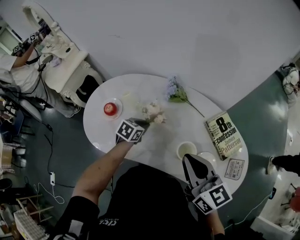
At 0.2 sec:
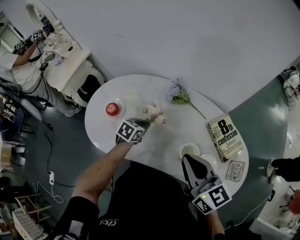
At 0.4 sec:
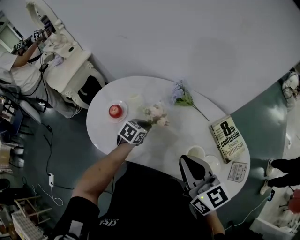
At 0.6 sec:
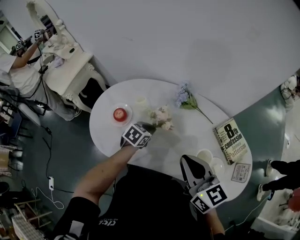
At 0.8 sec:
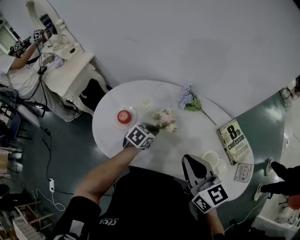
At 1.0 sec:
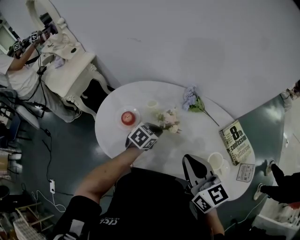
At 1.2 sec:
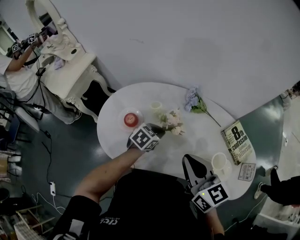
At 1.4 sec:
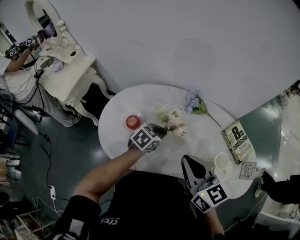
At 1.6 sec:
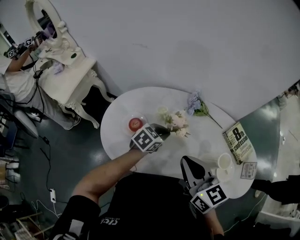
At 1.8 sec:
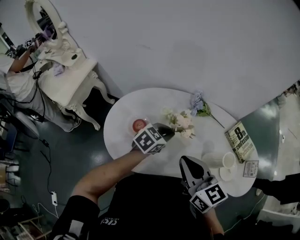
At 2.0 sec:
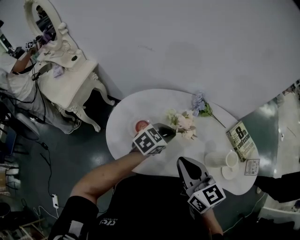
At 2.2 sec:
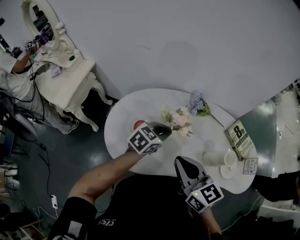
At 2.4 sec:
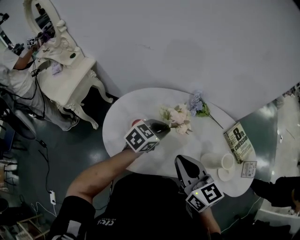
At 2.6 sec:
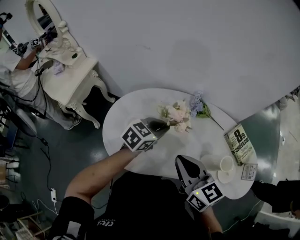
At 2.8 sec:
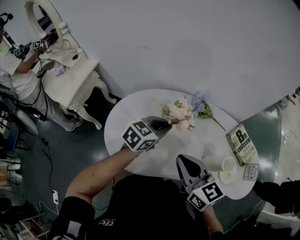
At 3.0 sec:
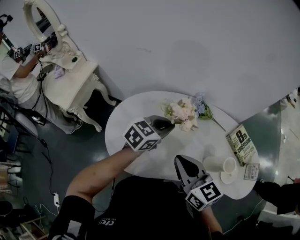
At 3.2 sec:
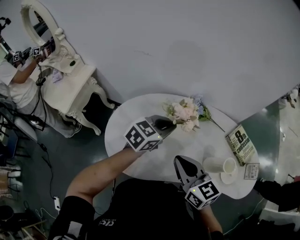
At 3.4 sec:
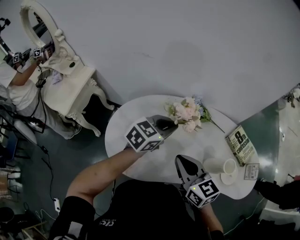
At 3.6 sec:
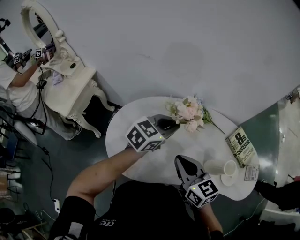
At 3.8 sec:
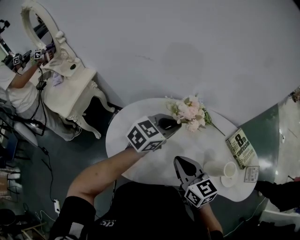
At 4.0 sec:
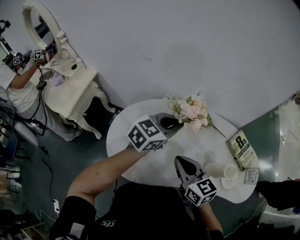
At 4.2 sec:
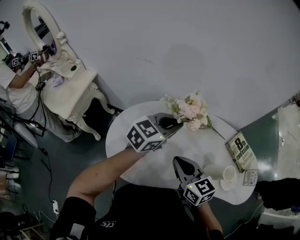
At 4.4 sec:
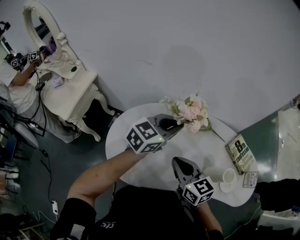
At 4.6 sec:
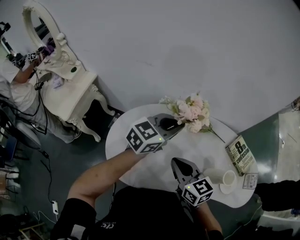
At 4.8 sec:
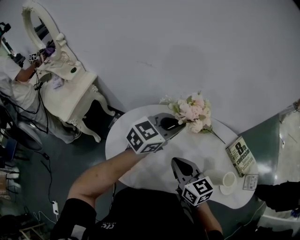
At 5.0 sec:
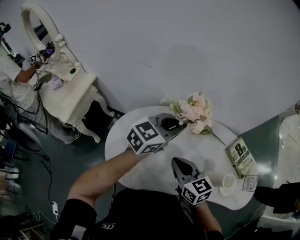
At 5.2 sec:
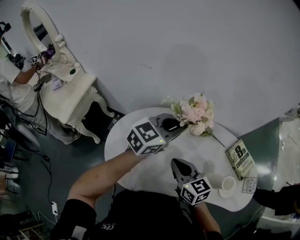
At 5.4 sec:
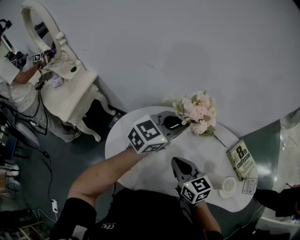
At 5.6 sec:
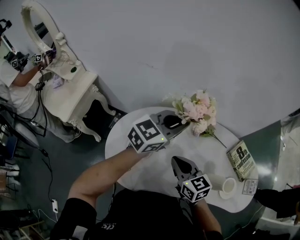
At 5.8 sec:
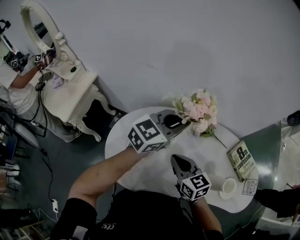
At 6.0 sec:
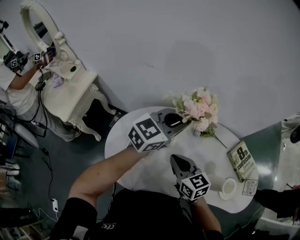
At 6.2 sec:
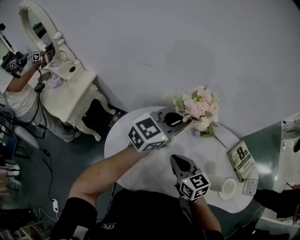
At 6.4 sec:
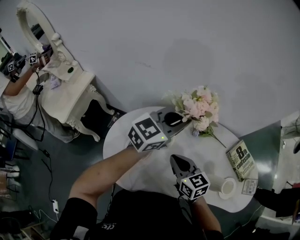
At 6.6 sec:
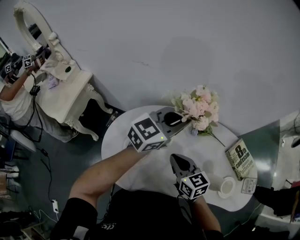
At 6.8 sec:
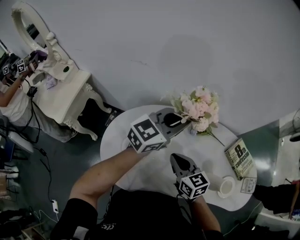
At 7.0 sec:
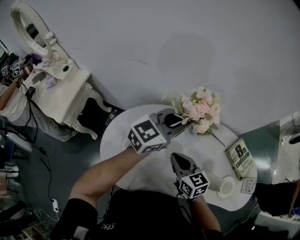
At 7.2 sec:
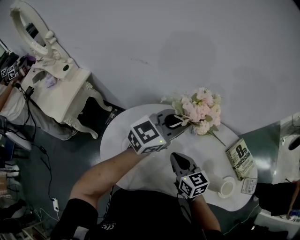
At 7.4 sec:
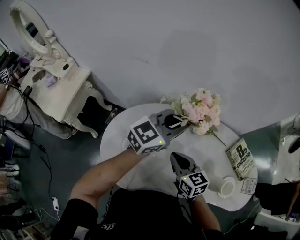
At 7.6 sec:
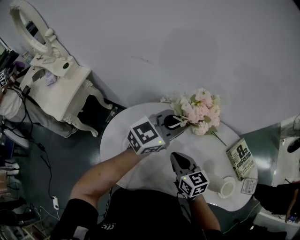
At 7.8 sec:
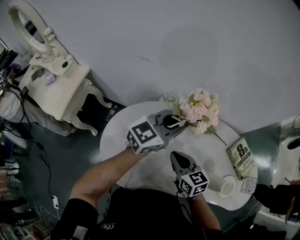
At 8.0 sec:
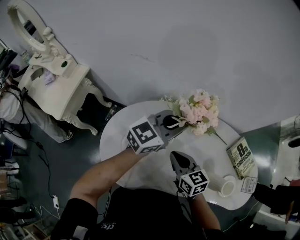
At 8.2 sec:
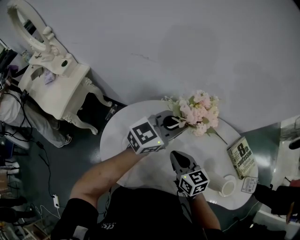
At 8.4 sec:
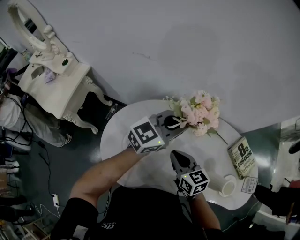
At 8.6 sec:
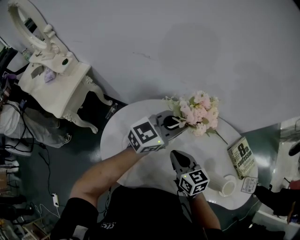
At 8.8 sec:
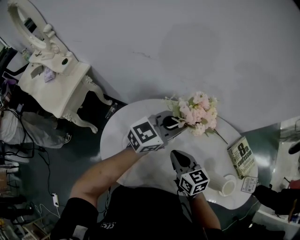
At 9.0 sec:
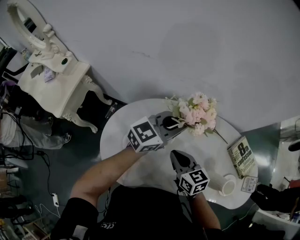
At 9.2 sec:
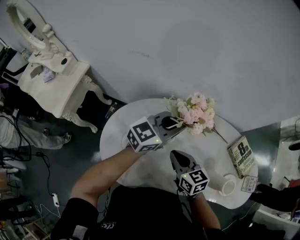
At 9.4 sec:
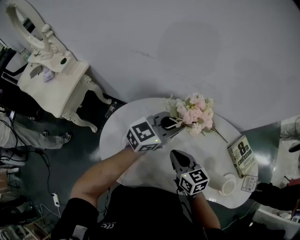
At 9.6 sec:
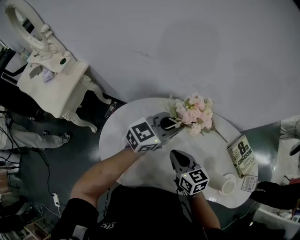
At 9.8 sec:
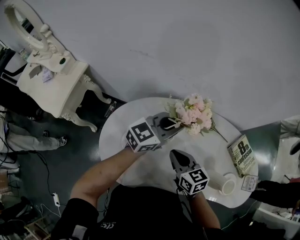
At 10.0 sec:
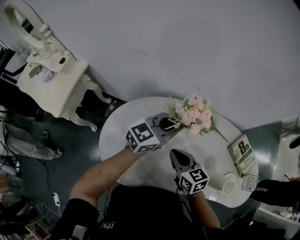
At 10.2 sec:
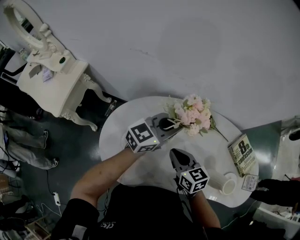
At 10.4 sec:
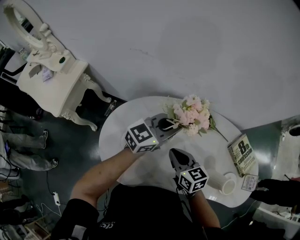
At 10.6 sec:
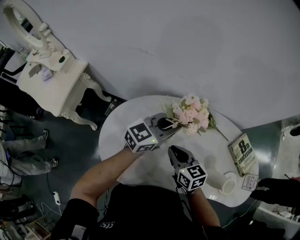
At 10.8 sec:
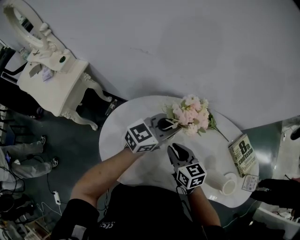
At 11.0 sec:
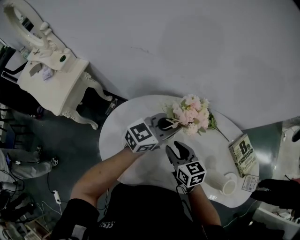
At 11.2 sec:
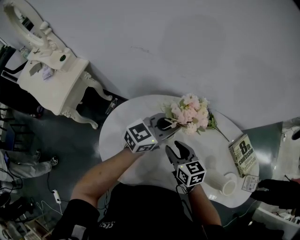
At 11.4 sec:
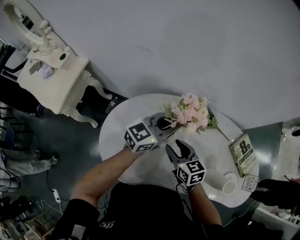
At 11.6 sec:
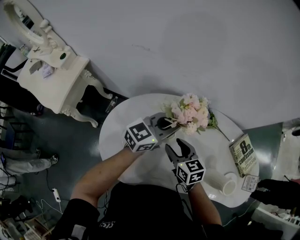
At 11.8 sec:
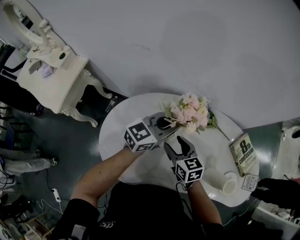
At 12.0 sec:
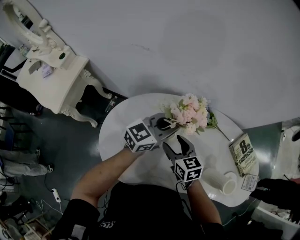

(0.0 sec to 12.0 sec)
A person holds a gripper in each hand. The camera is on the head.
0.0 sec - 1.6 sec: The left gripper travels to the left and upward by roughly 10 cm, and rotates some 20 degrees. The right gripper is displaced to the left by roughly 20 cm.
1.6 sec - 3.0 sec: The right gripper moves to the left, about 5 cm. The left gripper shifts roughly 10 cm upward.
3.0 sec - 4.4 sec: The right gripper goes about 5 cm forward. The left gripper shifts about 10 cm upward and forward.
4.4 sec - 6.0 sec: The left gripper shifts approximately 5 cm forward. Meanwhile the right gripper travels forward and downward by roughly 10 cm.
6.0 sec - 9.0 sec: The grippers make only small movements.
9.0 sec - 10.4 sec: There are only small adjustments of the grippers.
10.4 sec - 12.0 sec: The right gripper opens up.

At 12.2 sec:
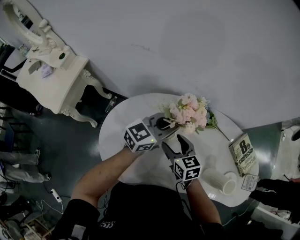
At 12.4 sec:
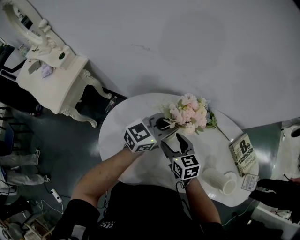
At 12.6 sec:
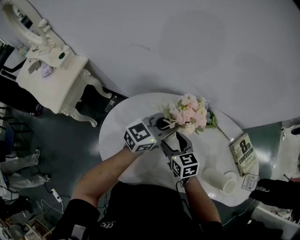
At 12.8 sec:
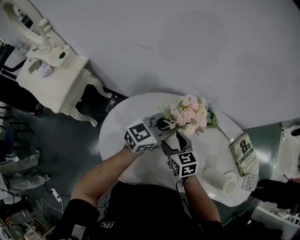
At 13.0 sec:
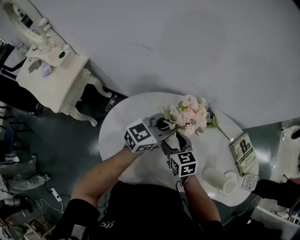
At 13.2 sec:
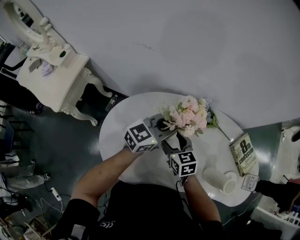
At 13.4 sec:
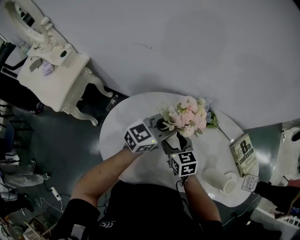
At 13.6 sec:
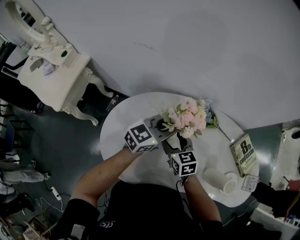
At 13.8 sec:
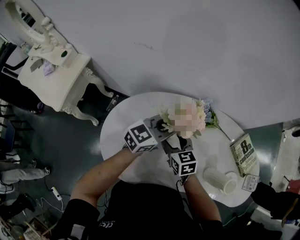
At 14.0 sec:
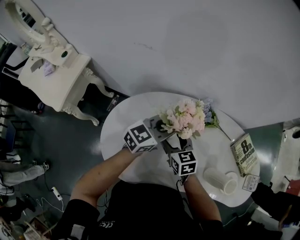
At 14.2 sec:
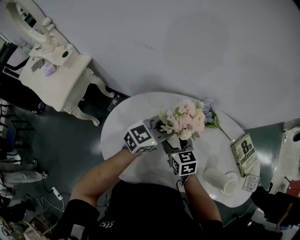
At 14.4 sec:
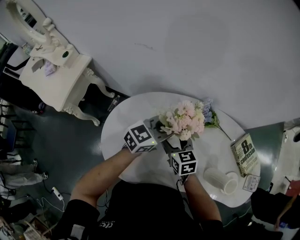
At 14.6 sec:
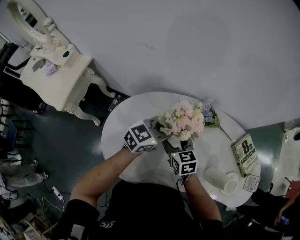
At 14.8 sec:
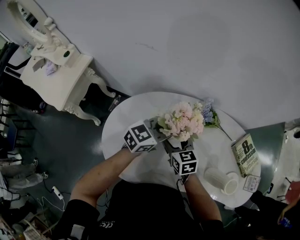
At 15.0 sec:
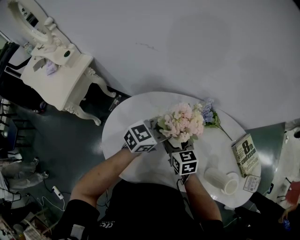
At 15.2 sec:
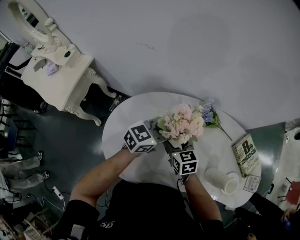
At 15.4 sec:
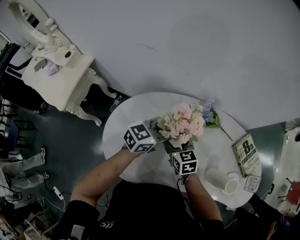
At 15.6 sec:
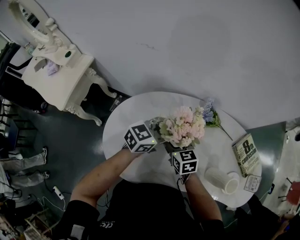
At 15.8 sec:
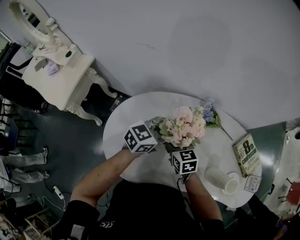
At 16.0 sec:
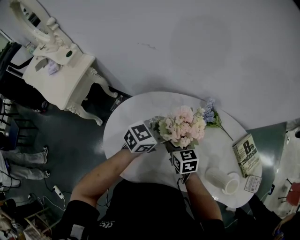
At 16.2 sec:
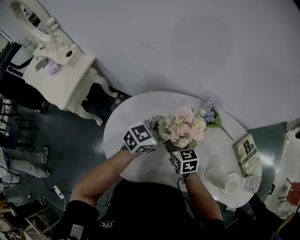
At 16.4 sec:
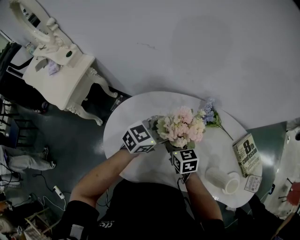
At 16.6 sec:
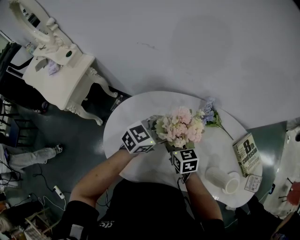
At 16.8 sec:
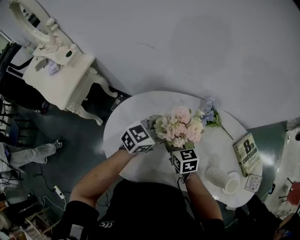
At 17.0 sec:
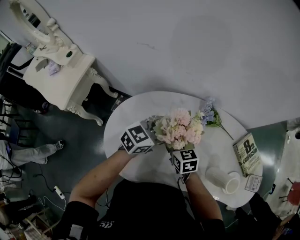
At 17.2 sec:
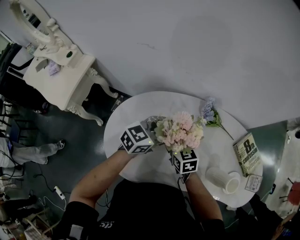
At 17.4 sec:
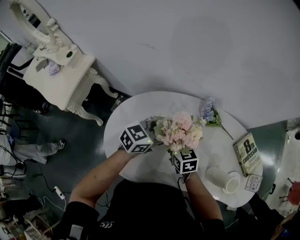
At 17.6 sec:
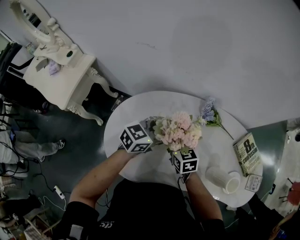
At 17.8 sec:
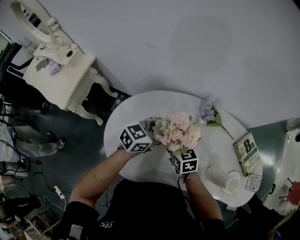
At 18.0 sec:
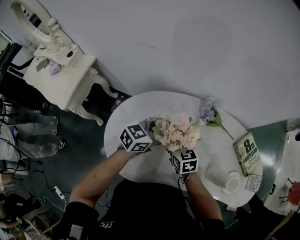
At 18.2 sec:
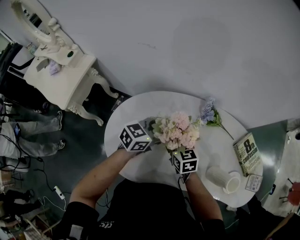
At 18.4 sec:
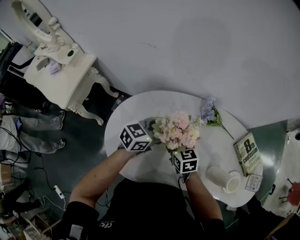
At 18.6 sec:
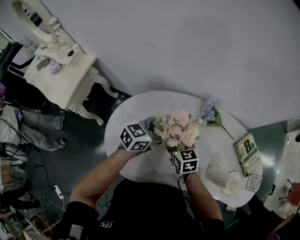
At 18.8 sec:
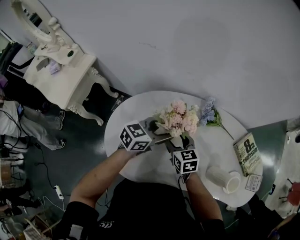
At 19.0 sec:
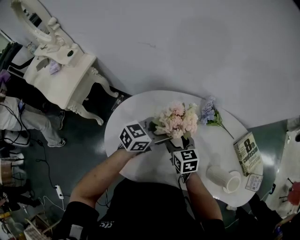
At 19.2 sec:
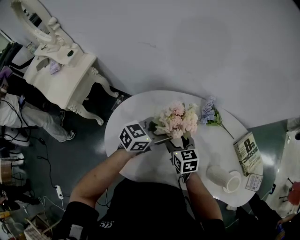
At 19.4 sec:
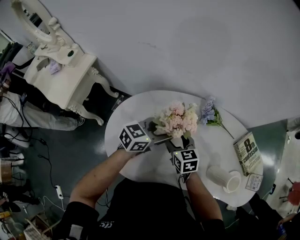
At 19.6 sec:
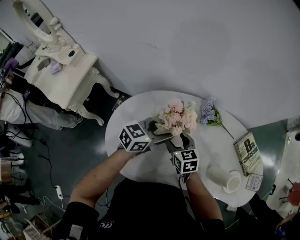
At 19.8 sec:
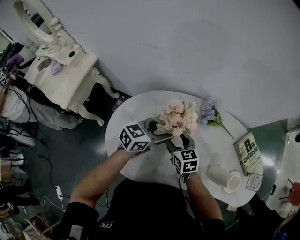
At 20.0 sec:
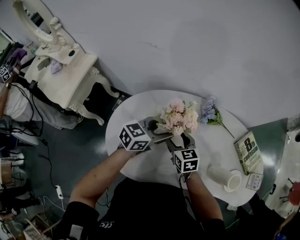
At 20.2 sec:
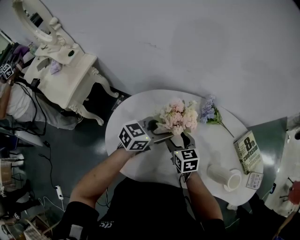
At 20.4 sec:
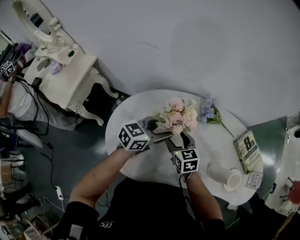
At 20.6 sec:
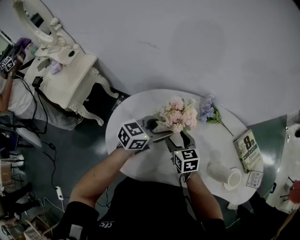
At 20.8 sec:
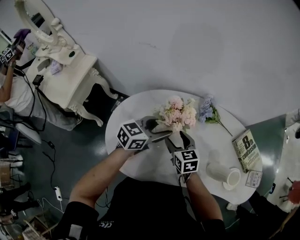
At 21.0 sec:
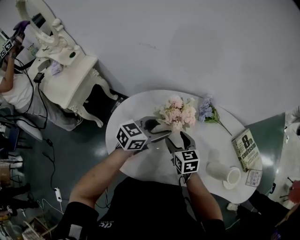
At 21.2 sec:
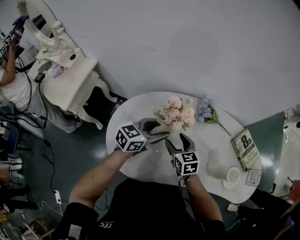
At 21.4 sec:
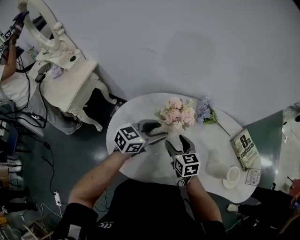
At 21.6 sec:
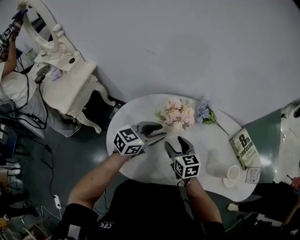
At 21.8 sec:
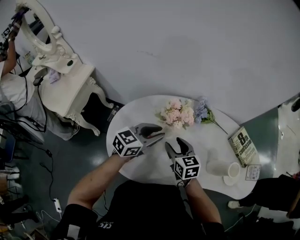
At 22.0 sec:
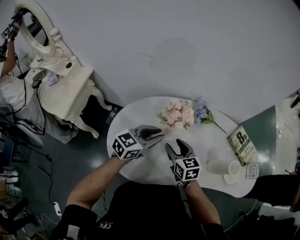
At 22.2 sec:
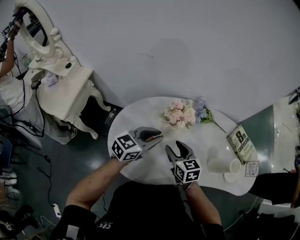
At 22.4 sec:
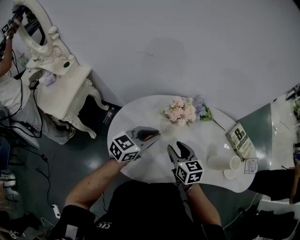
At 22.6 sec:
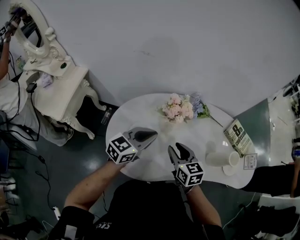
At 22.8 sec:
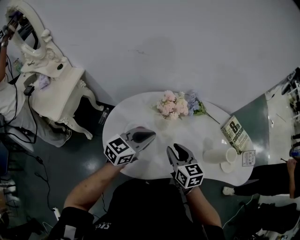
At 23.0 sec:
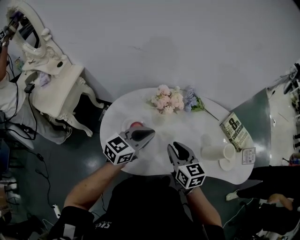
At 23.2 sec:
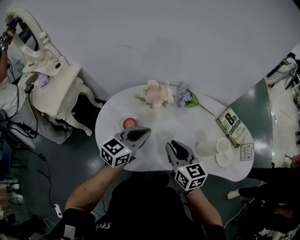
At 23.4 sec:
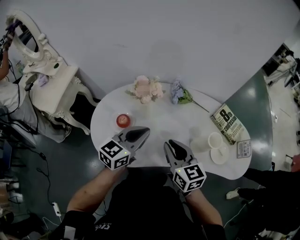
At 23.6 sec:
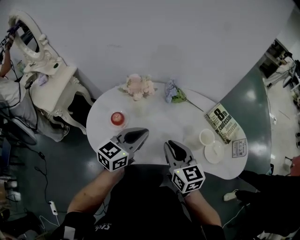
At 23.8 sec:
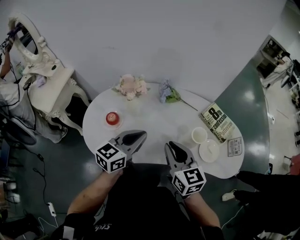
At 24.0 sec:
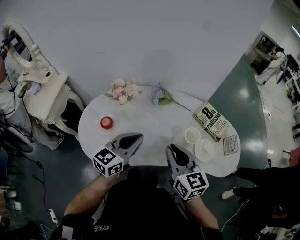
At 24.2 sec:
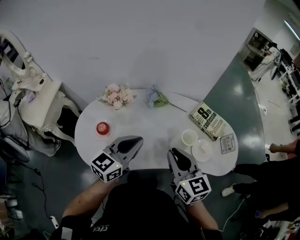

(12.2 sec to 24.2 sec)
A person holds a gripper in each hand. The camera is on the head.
12.2 sec - 15.2 sec: The grippers move only a little.
15.2 sec - 16.6 sec: The left gripper opens up.
16.6 sec - 18.2 sec: The grippers stay close to where they were, moving slightly.
18.2 sec - 19.8 sec: Both grippers stay put.
19.8 sec - 21.2 sec: The grippers make only small movements.
21.2 sec - 22.6 sec: The left gripper moves backward, some 5 cm, and closes its fingers; the right gripper is displaced backward and upward by roughly 10 cm, and closes.
22.6 sec - 24.2 sec: The right gripper heads to the right and upward, covering approximately 30 cm. The left gripper heads to the right, covering some 20 cm.
